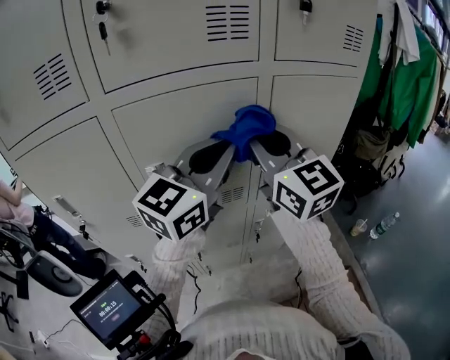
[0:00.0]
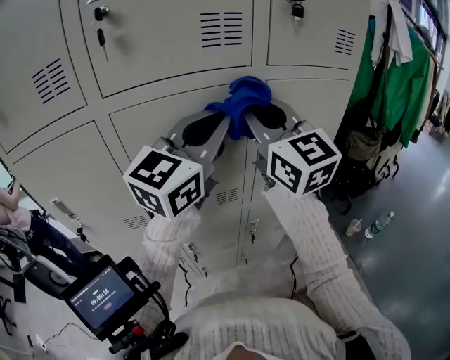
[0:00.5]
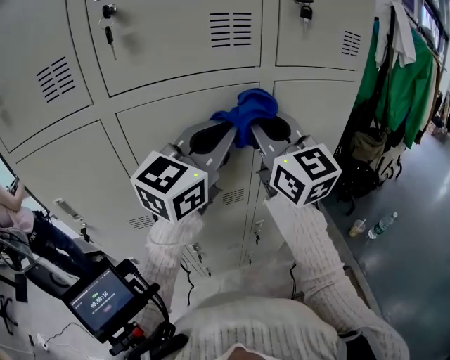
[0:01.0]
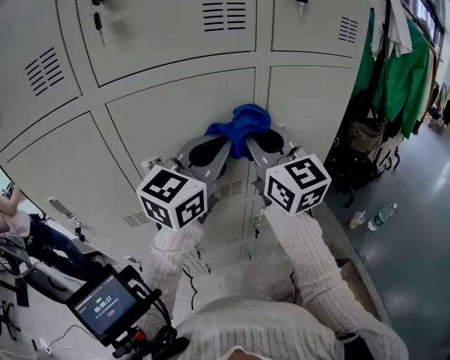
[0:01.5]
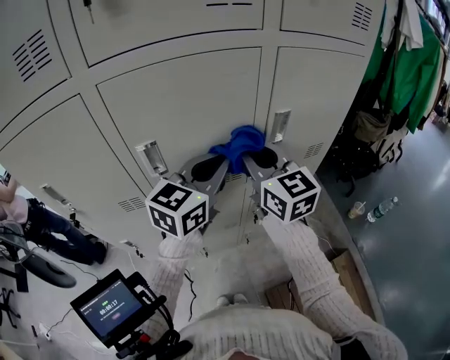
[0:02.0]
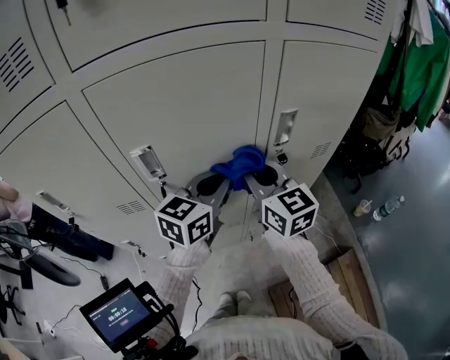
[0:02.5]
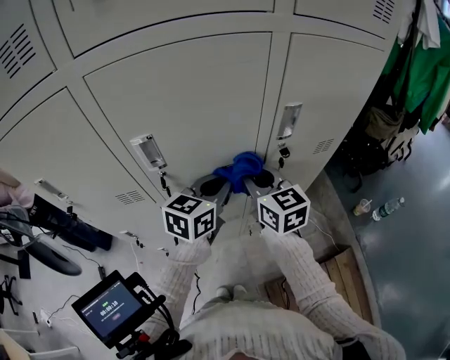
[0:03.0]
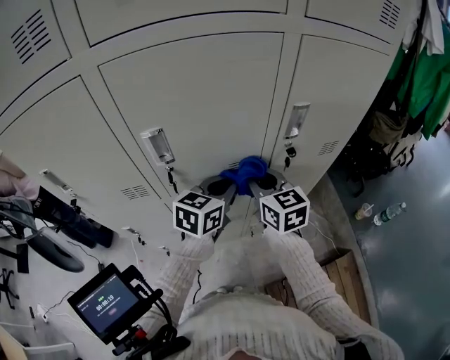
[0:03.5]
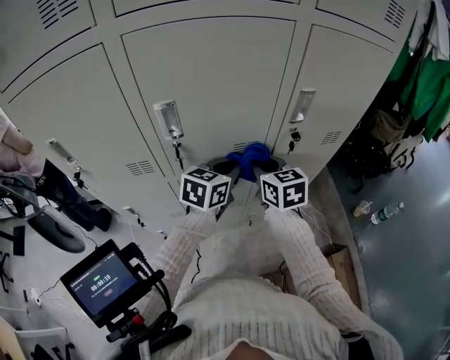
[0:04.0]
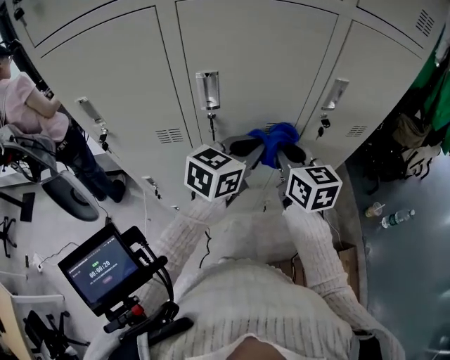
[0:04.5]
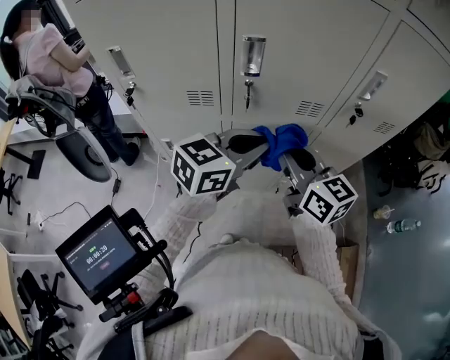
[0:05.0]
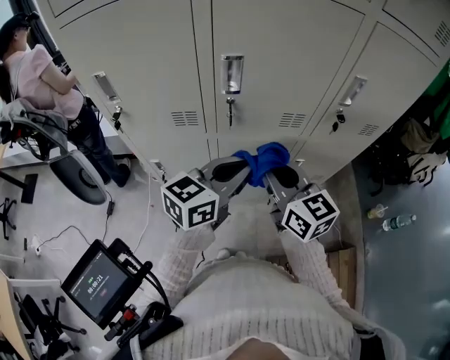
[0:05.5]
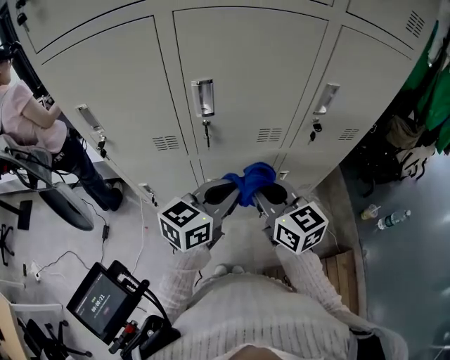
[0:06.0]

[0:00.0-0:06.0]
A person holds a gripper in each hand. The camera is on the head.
0:00.0 to 0:02.0: The grippers both shift downward by some 15 cm.
0:02.0 to 0:04.0: The grippers both shift downward by roughly 15 cm. The left gripper rotates approximately 20 degrees, while the right gripper swivels roughly 20 degrees.
0:04.0 to 0:06.0: The grippers both shift backward by about 15 cm. The right gripper swivels some 20 degrees.

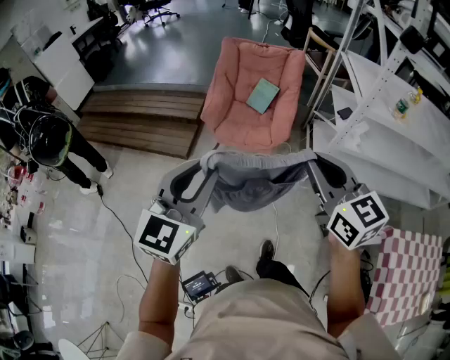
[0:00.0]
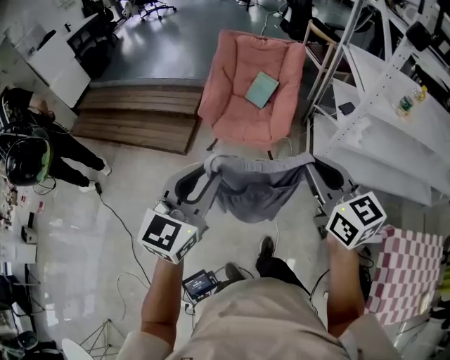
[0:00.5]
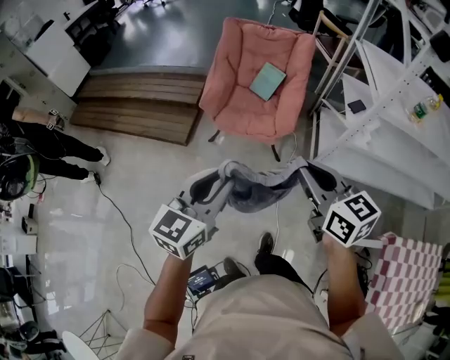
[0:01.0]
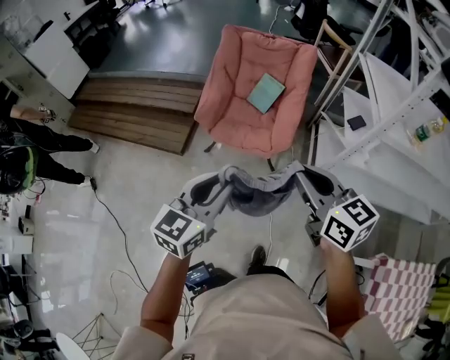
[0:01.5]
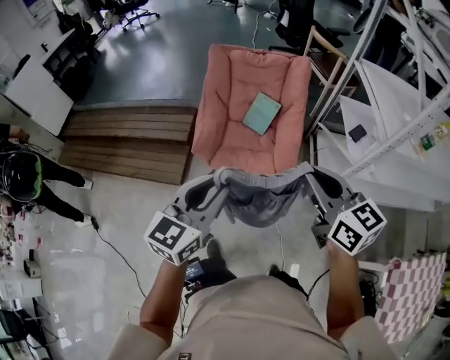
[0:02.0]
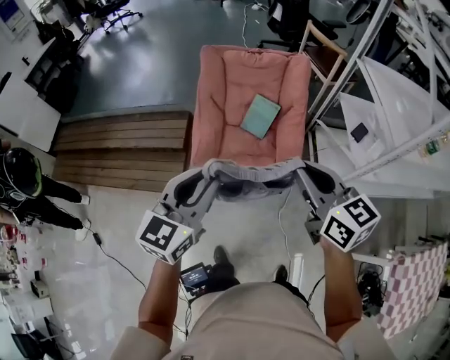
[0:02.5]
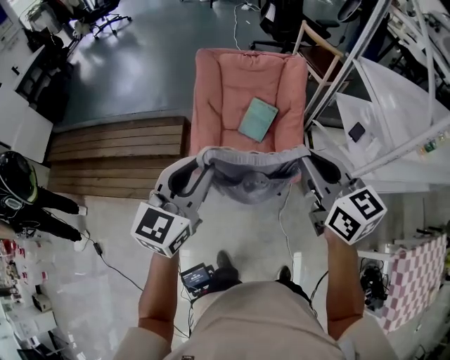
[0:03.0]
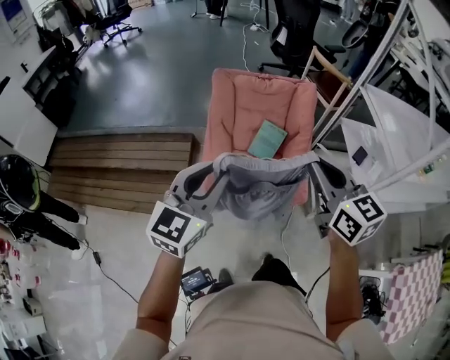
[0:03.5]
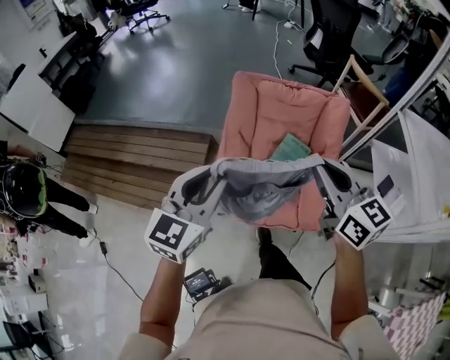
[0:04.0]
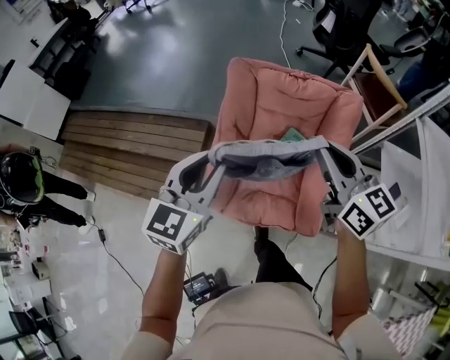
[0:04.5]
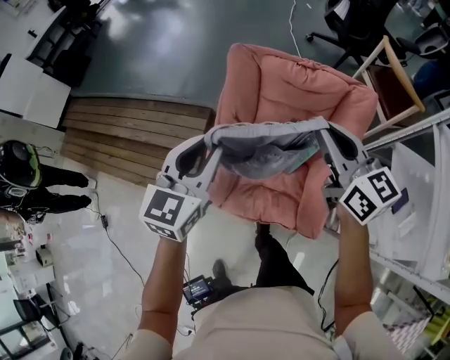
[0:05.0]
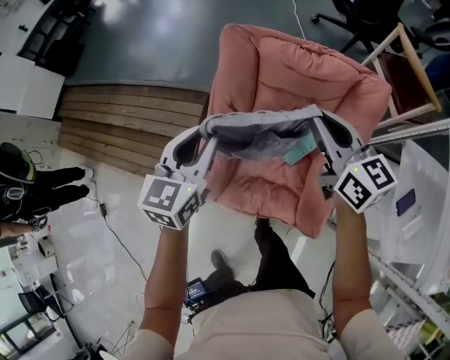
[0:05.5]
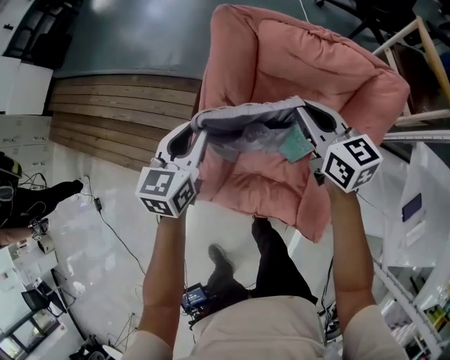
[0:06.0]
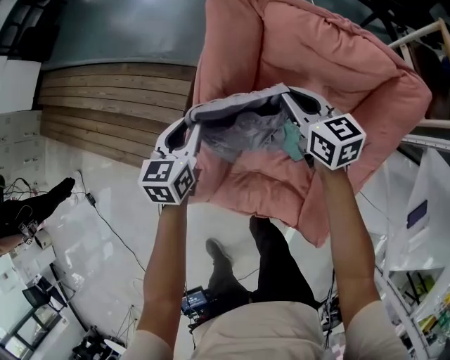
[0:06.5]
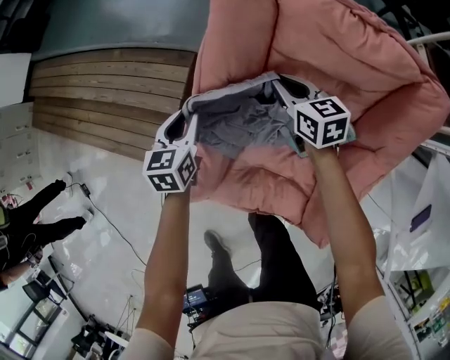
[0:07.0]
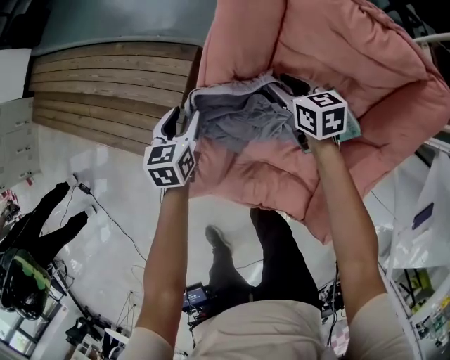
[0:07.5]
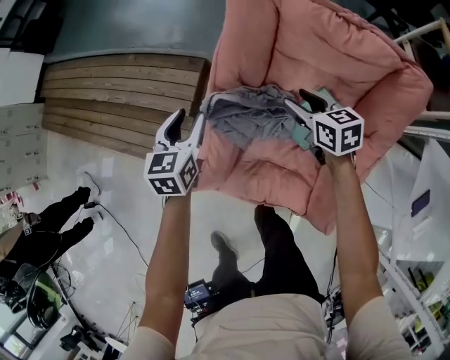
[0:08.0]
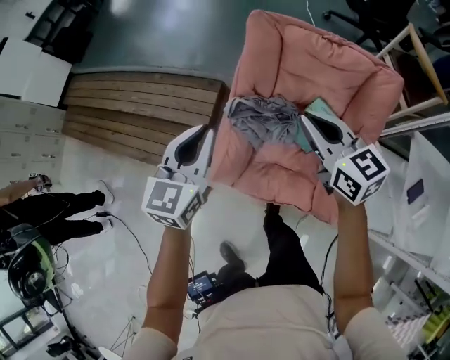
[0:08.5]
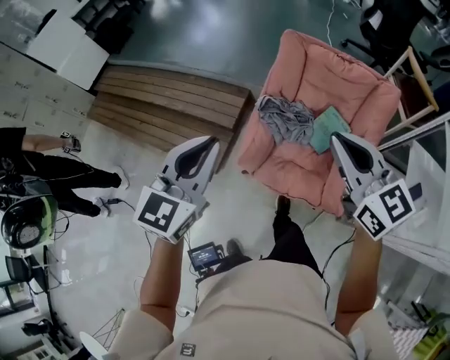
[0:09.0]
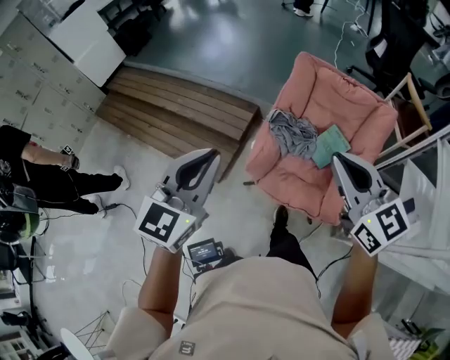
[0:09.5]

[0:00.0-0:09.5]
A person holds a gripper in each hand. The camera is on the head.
0:00.0 to 0:02.0: Both grippers move forward, approximately 30 cm.
0:02.0 to 0:04.0: The left gripper goes some 35 cm forward and to the left. The right gripper goes approximately 35 cm forward.
0:04.0 to 0:05.5: Both grippers travel together forward and downward, approximately 30 cm. The left gripper turns by approximately 20 degrees.
0:05.5 to 0:07.5: The right gripper goes roughly 40 cm downward and forward, swivels about 30 degrees, and opens. The left gripper is displaced downward by roughly 30 cm, rotates approximately 30 degrees, and opens.
0:07.5 to 0:09.5: Both grippers are carried backward and to the left, some 50 cm. The two grippers go about 60 cm upward. The left gripper points its fingers roughly 30 degrees further upward, and closes its fingers, while the right gripper changes its angle by some 40 degrees, and closes up.

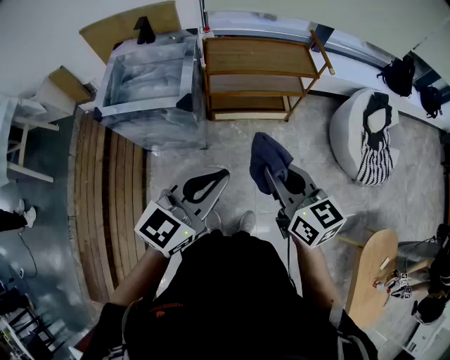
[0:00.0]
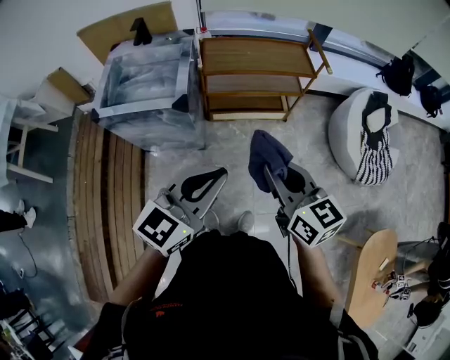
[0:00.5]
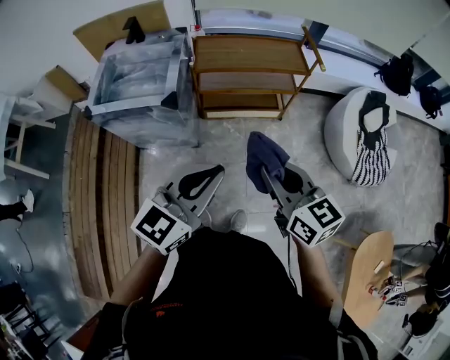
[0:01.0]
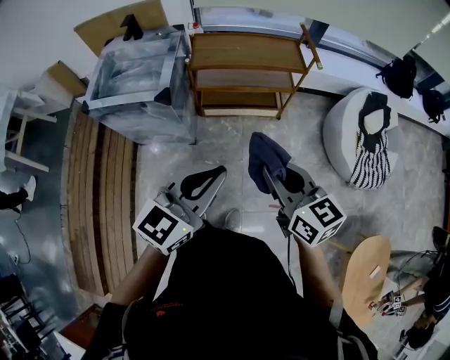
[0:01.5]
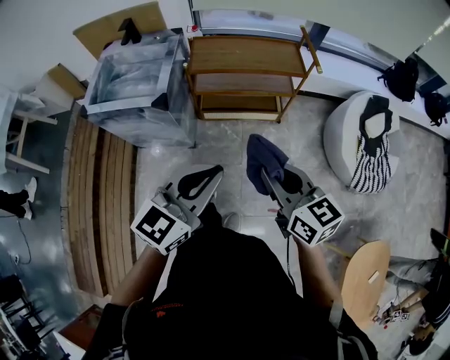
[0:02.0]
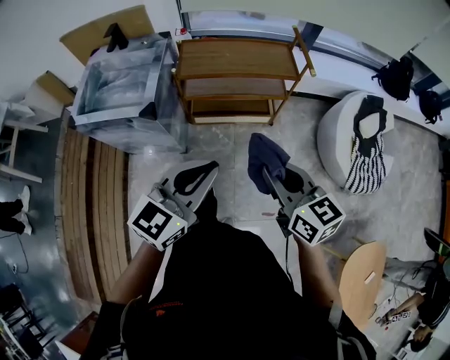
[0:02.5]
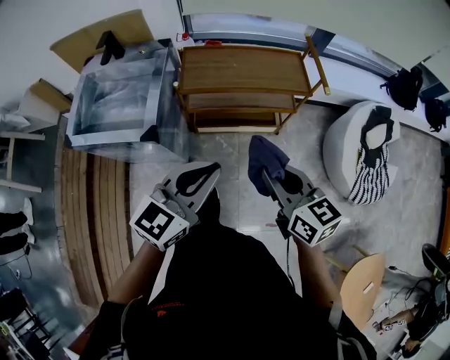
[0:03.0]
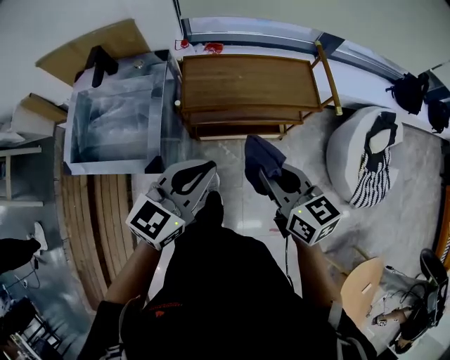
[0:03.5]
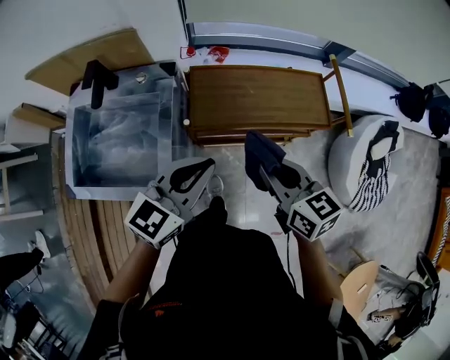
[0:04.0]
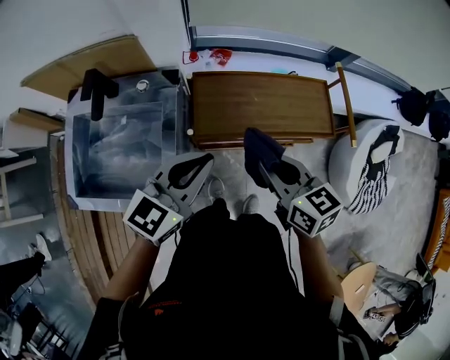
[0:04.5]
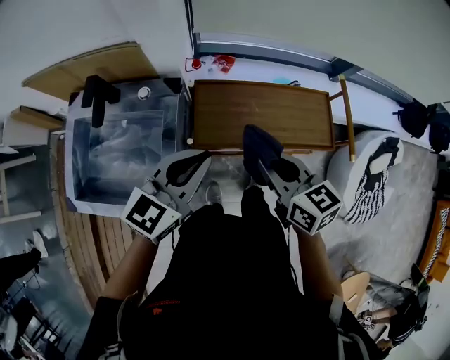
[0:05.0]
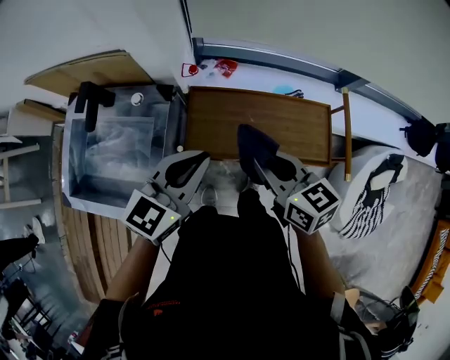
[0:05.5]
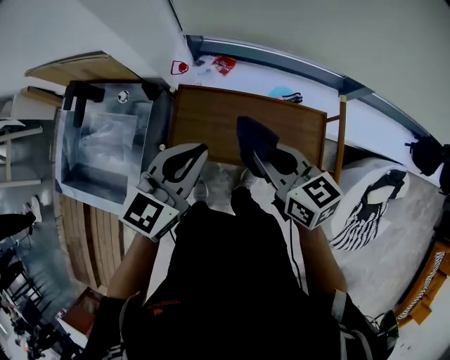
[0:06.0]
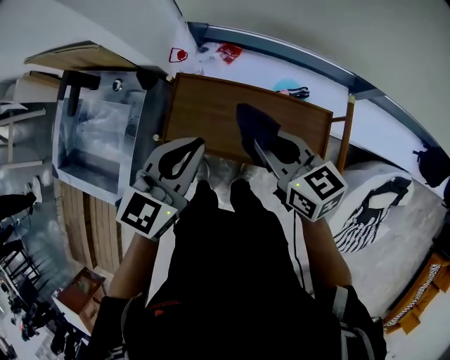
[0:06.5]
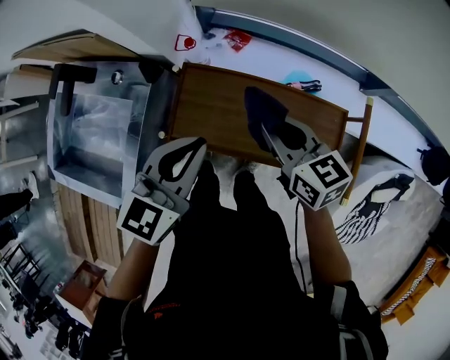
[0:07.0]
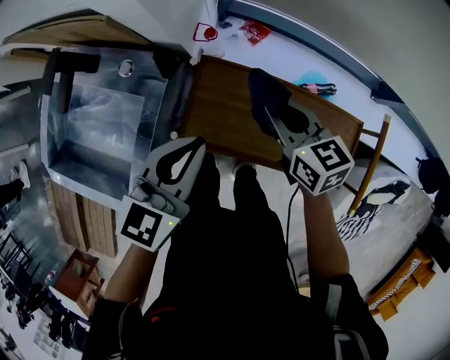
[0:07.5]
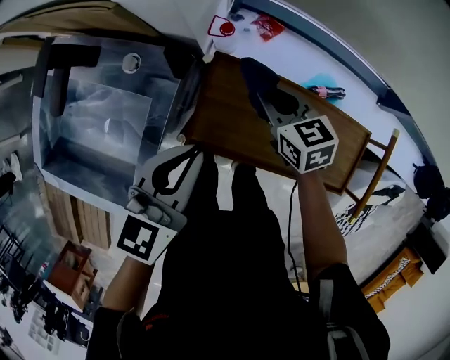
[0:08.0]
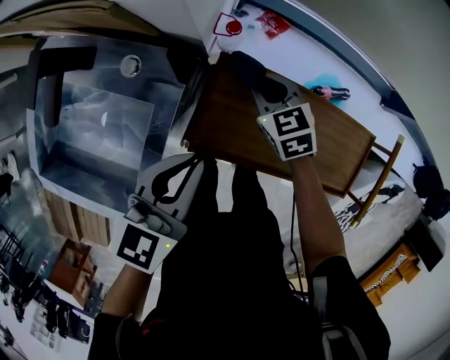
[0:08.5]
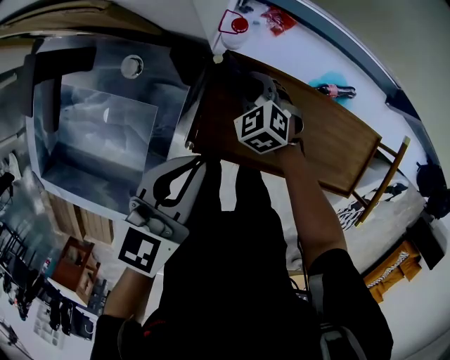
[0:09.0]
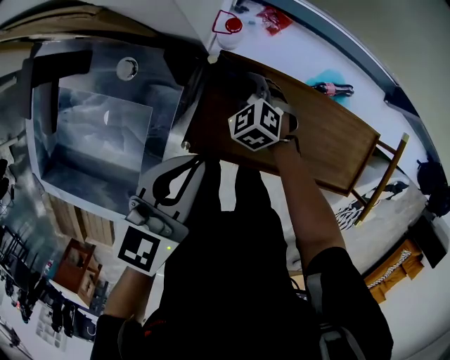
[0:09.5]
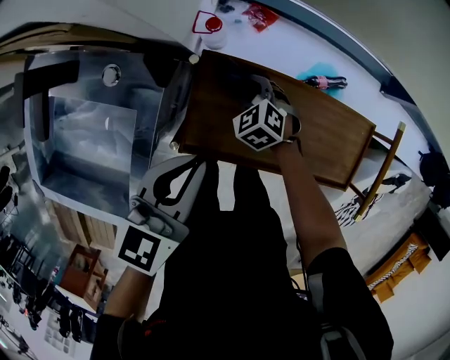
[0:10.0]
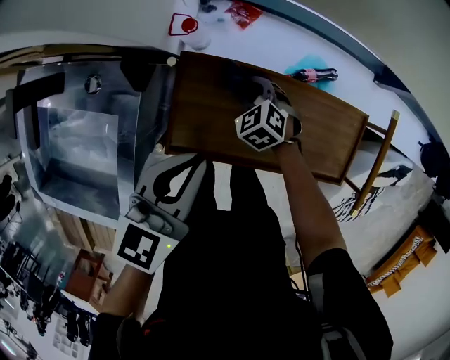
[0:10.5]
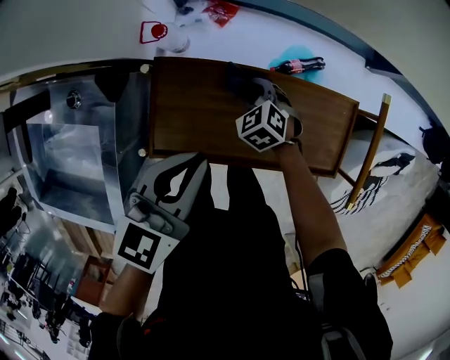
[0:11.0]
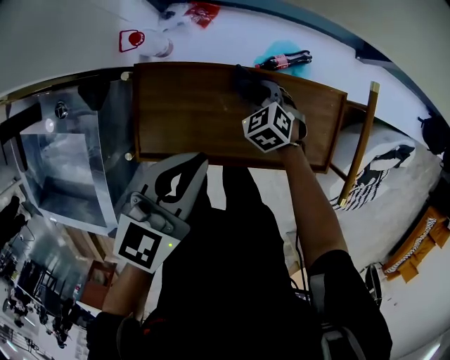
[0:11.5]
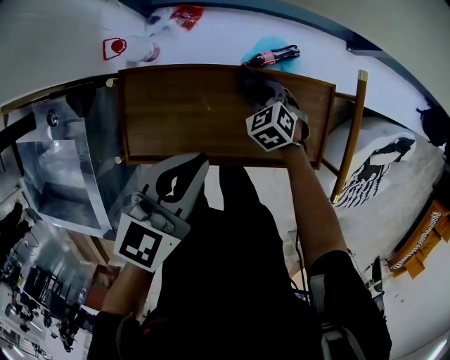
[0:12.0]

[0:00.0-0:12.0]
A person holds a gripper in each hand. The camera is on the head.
0:00.0 to 0:02.0: Both grippers move to the right, about 10 cm.
0:02.0 to 0:04.0: The two grippers travel together, forward, some 50 cm.
0:04.0 to 0:06.0: Both grippers move forward and to the right, approximately 20 cm.
0:06.0 to 0:08.0: The left gripper shifts some 20 cm to the left, downward and forward; the right gripper shifts about 30 cm downward, forward and to the left.
0:08.0 to 0:10.0: The right gripper goes roughly 15 cm downward, and turns by roughly 40 degrees.
0:10.0 to 0:12.0: Both grippers move to the right, roughly 25 cm.
